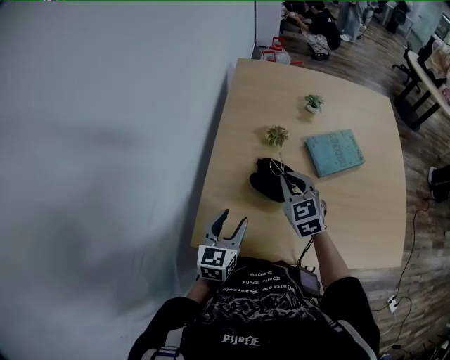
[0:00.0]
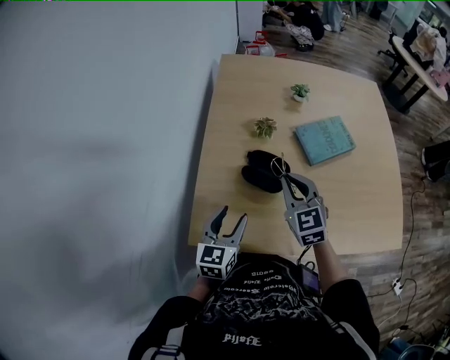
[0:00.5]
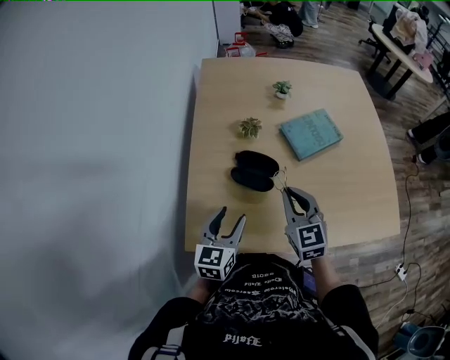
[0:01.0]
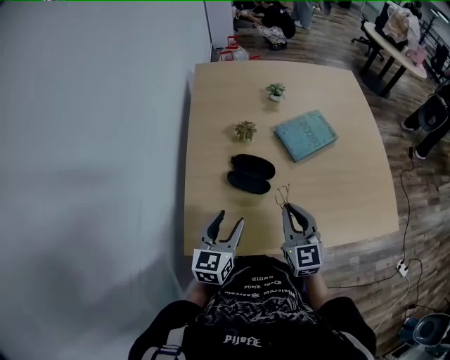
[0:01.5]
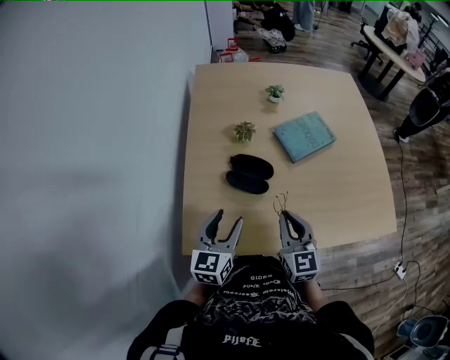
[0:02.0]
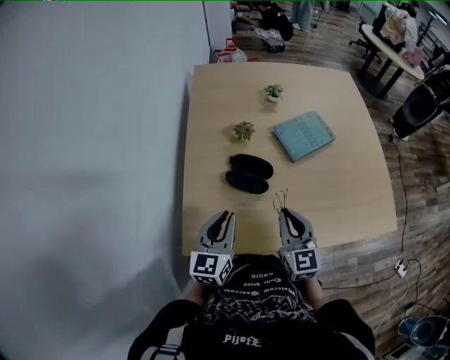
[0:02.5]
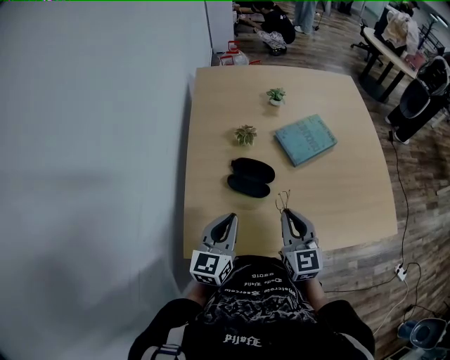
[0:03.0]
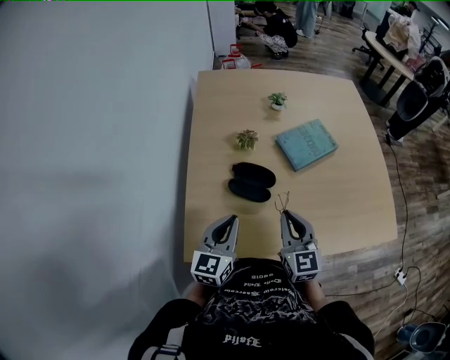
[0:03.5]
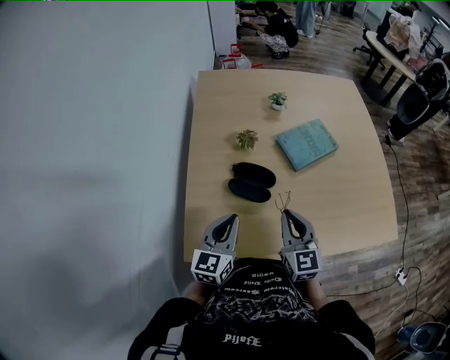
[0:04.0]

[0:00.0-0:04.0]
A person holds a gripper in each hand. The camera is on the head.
0:00.0 to 0:02.0: The left gripper shifts by about 5 cm. The right gripper shifts about 15 cm backward and to the right, and changes its angle by about 30 degrees.
0:02.0 to 0:04.0: The left gripper closes its fingers.

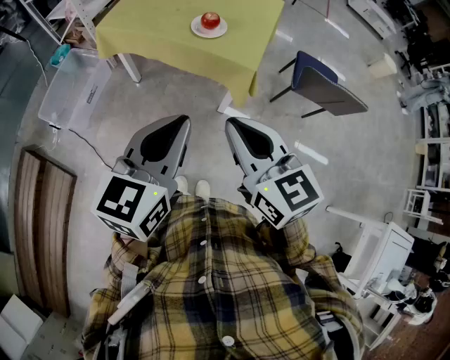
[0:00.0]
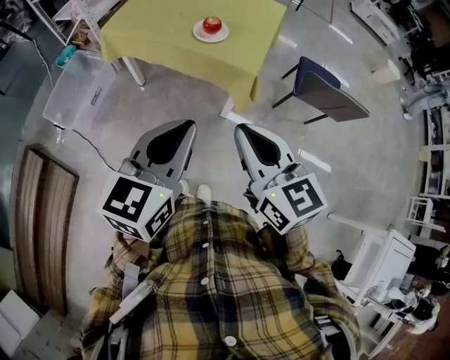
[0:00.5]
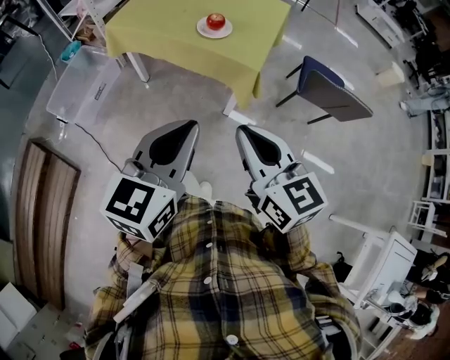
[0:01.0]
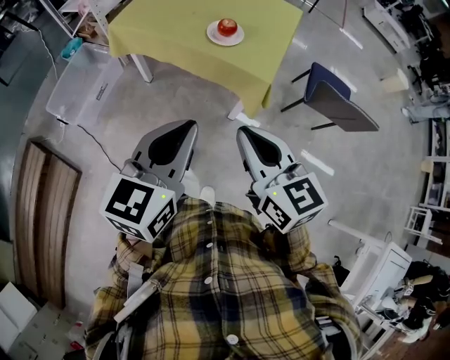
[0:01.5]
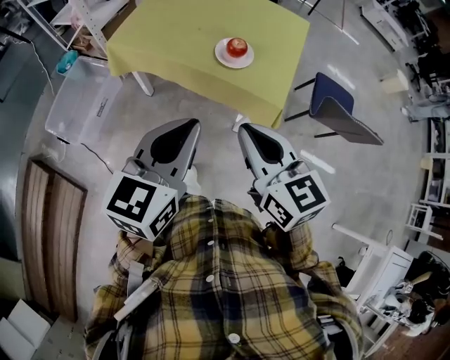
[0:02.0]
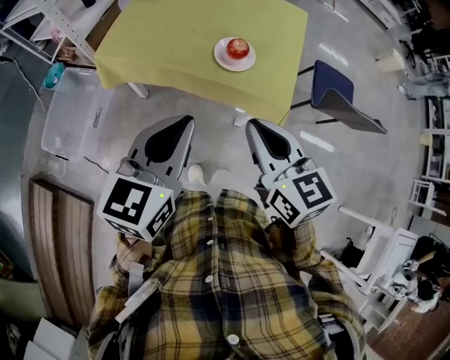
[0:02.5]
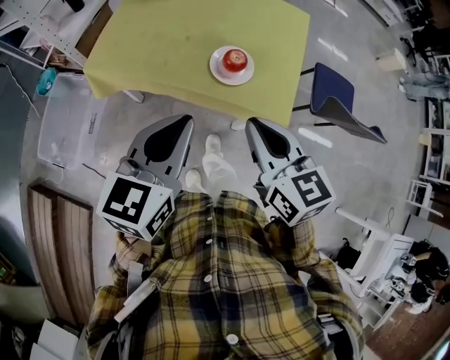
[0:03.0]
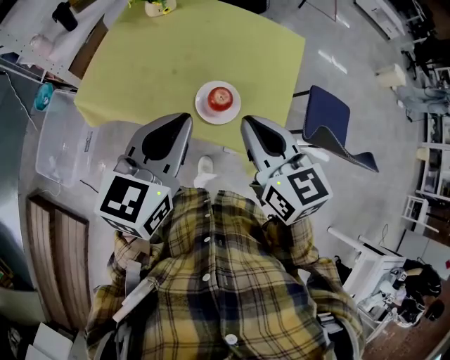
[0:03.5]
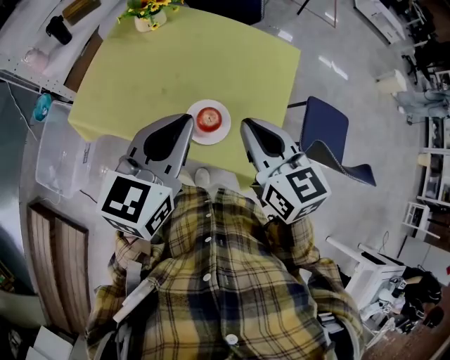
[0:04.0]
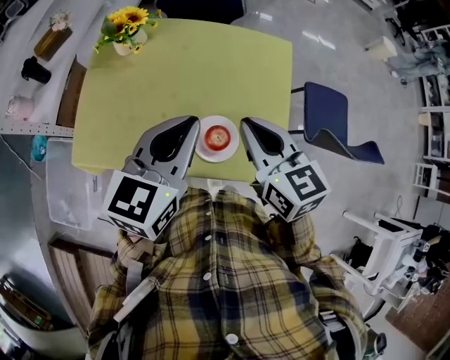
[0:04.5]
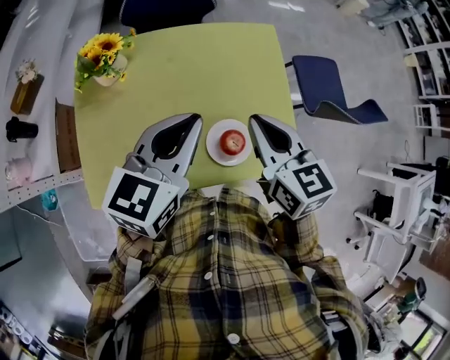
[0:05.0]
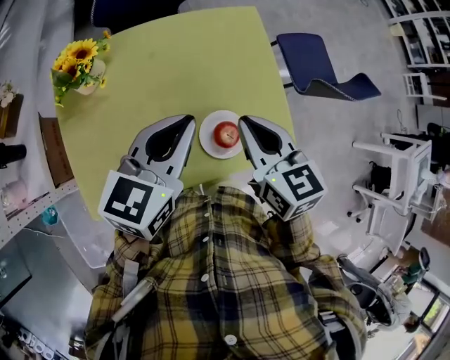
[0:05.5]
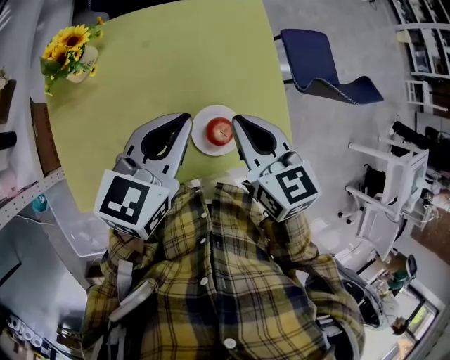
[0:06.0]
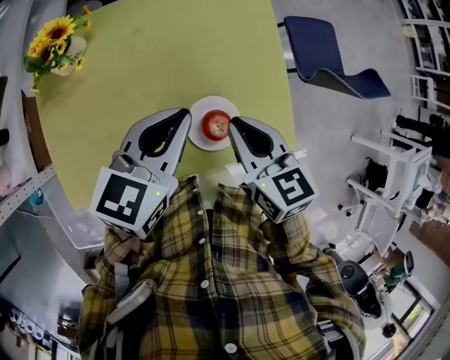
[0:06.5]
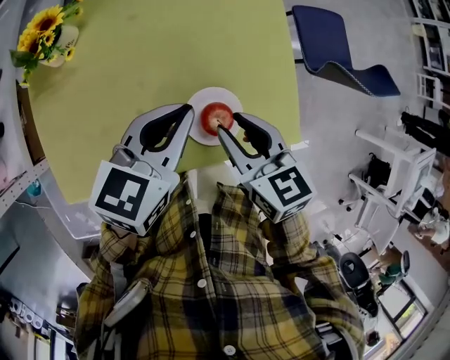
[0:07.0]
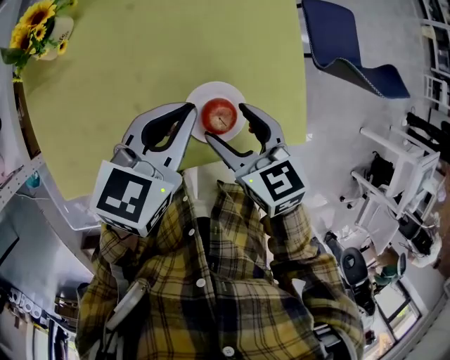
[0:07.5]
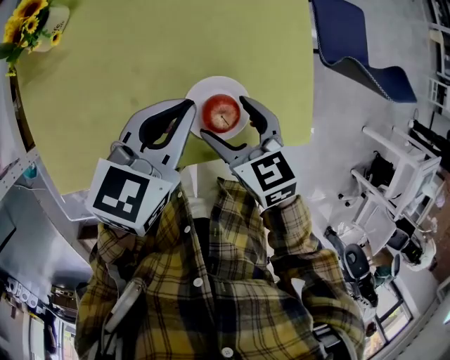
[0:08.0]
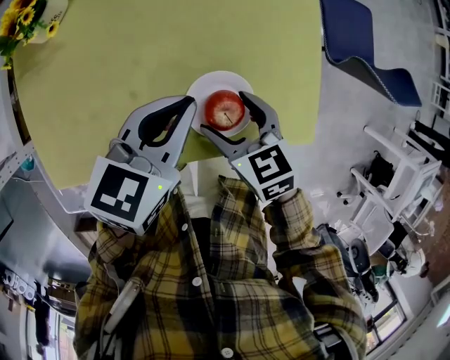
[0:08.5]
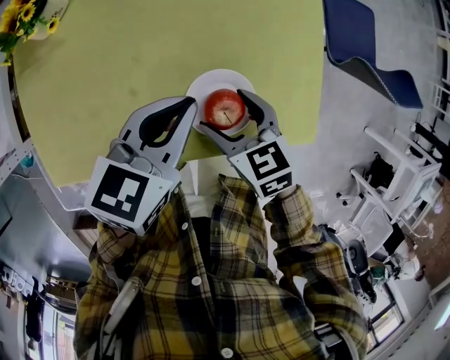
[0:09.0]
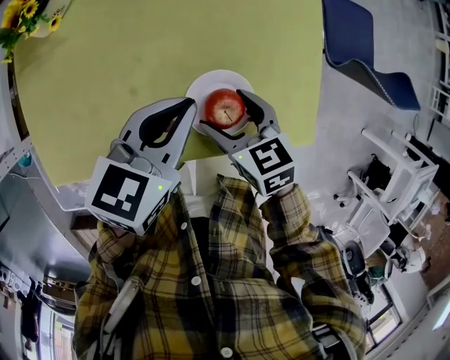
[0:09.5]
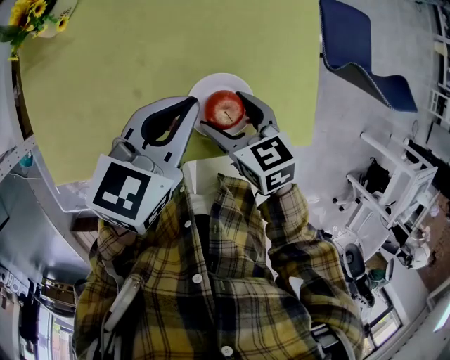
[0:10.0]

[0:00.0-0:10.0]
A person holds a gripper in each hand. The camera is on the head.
0:00.0 to 0:02.0: Both grippers move forward and to the left, approximately 15 cm.
0:02.0 to 0:04.0: The grippers both shift forward by some 35 cm.
0:04.0 to 0:06.0: The left gripper changes place by approximately 15 cm, and swivels some 40 degrees; the right gripper shifts by roughly 15 cm, and swivels about 30 degrees.
0:06.0 to 0:08.0: Both grippers travel together downward, roughly 15 cm. The right gripper changes its angle by some 20 degrees, and opens.
0:08.0 to 0:10.0: The grippers move only a little.

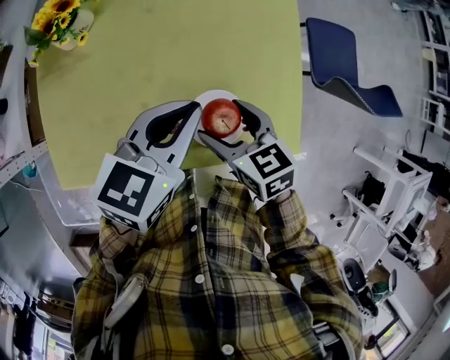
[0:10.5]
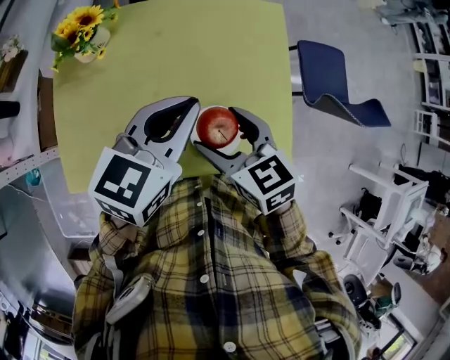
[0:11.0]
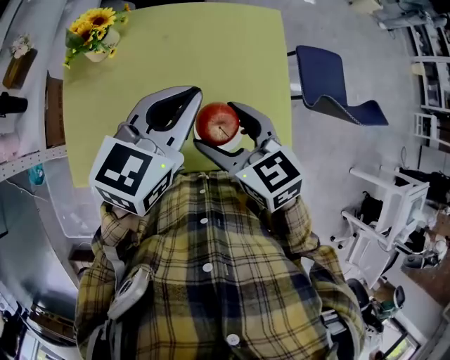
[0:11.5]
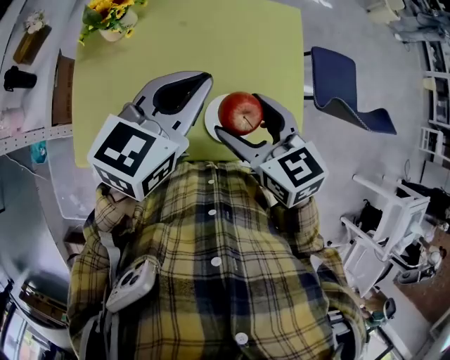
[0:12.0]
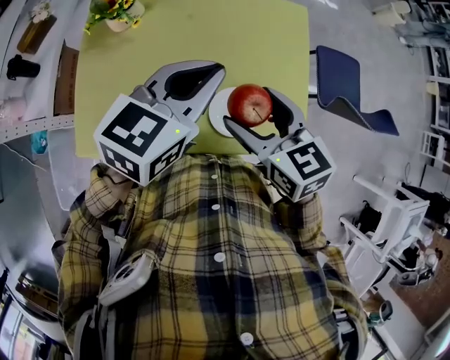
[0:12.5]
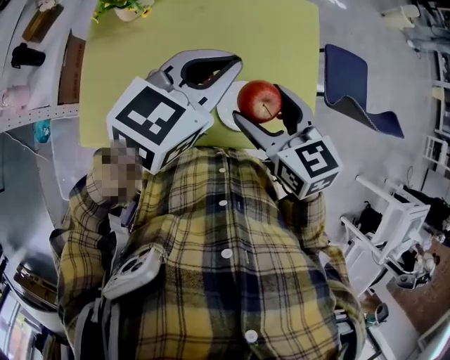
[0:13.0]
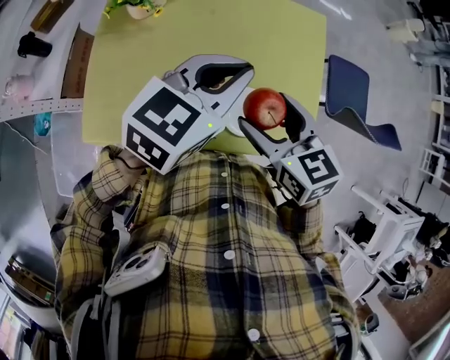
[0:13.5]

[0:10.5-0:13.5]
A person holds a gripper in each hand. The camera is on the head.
0:10.5 to 0:12.0: Both grippers travel together upward, roughly 15 cm.
0:12.0 to 0:13.5: The grippers stay close to where they were, moving slightly.

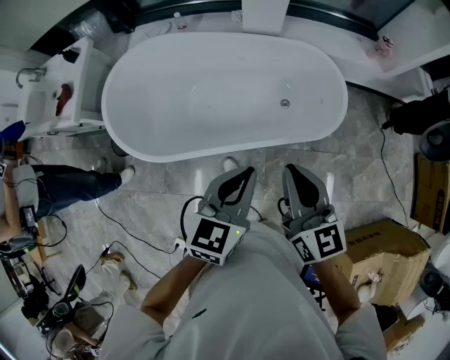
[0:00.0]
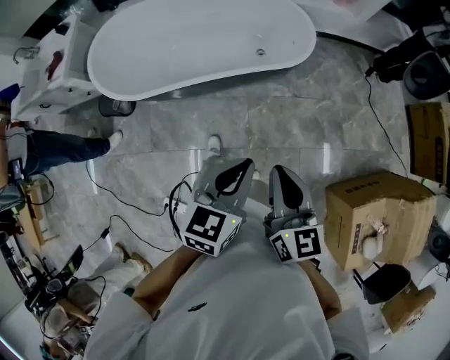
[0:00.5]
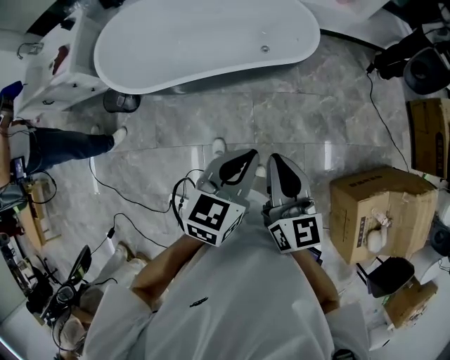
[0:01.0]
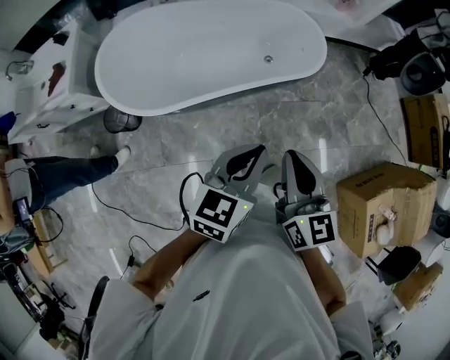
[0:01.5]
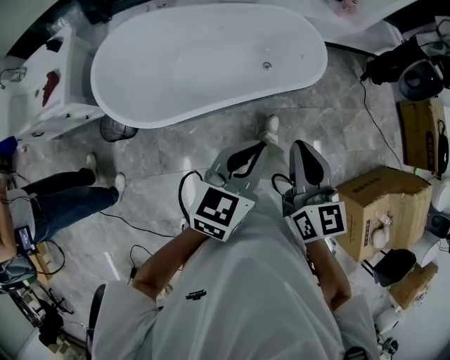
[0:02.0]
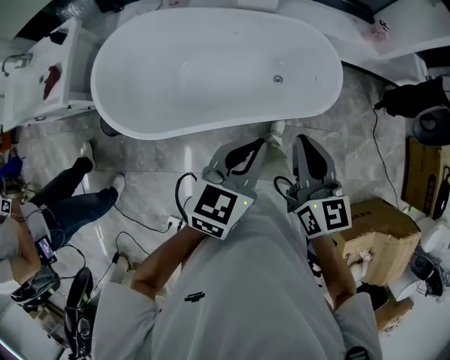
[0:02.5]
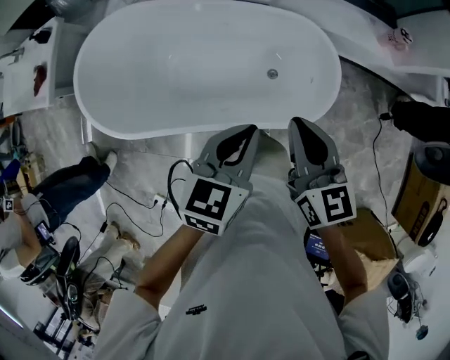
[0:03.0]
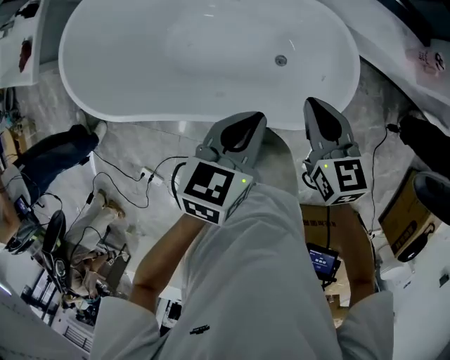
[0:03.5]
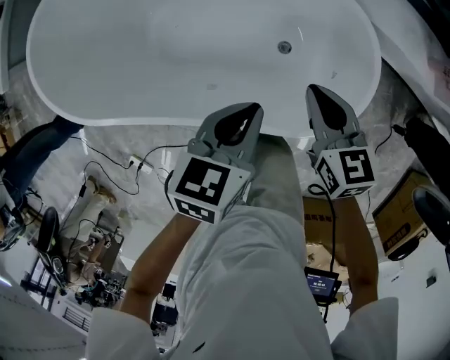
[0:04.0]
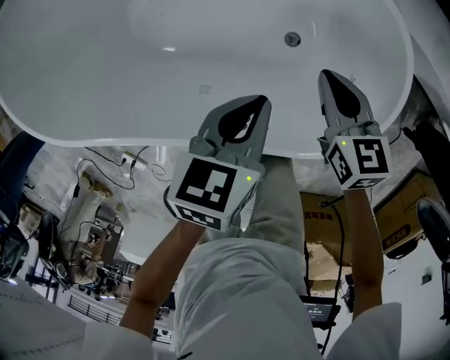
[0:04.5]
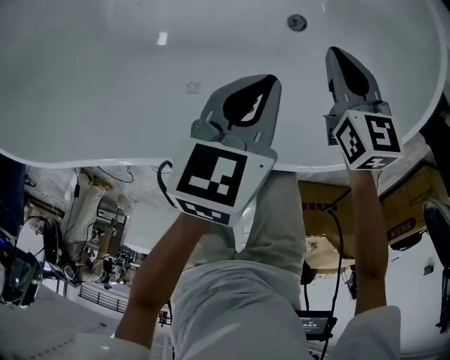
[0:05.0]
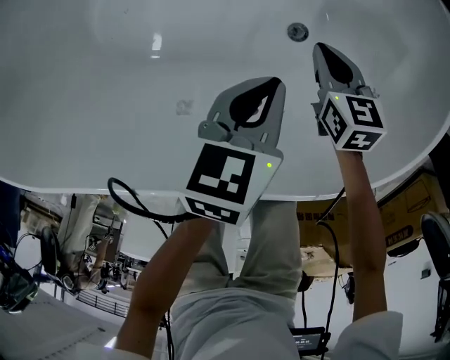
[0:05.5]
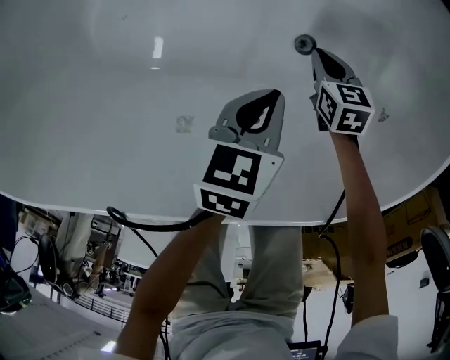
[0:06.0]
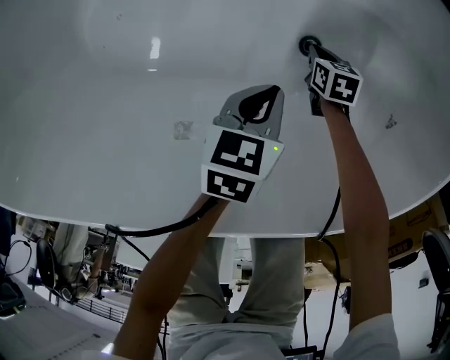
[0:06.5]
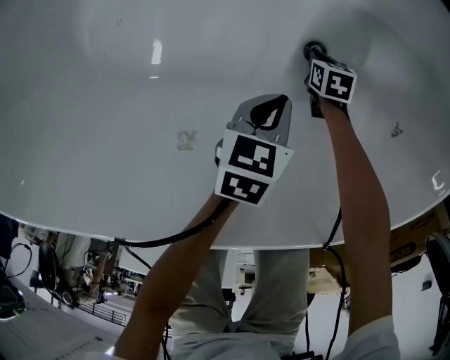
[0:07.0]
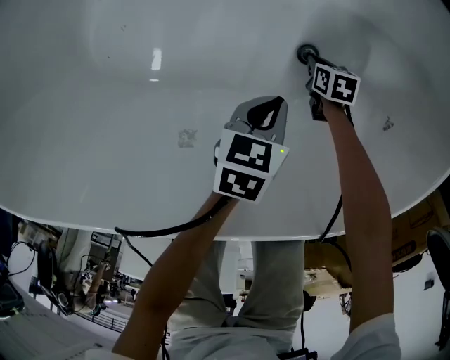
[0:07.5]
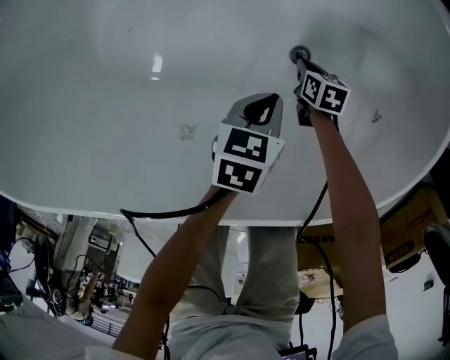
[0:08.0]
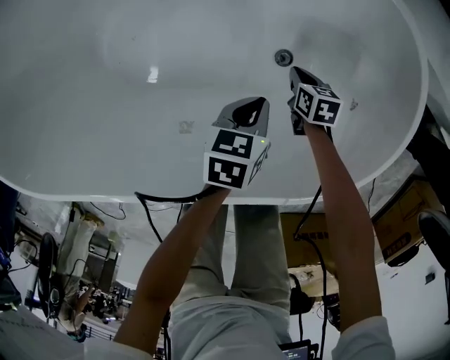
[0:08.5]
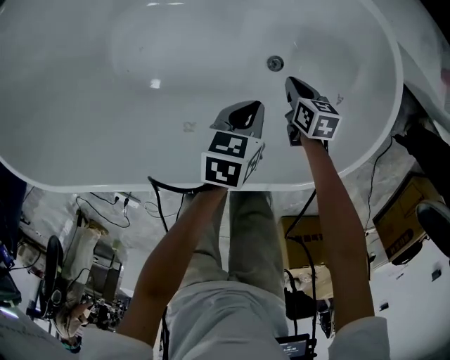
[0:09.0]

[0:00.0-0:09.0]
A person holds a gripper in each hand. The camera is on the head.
0:00.0 to 0:02.0: Both grippers travel together backward, approximately 15 cm.
0:02.0 to 0:04.5: The pair of grippers is taken about 50 cm. The right gripper tips its fingers downward by some 30 degrees, while the left gripper swivels roughly 50 degrees.
0:04.5 to 0:07.0: The two grippers go approximately 40 cm downward. The right gripper tips its fingers downward by some 30 degrees.
0:07.0 to 0:09.0: The left gripper travels upward by roughly 20 cm. Meanwhile the right gripper moves upward, some 25 cm, and turns by some 20 degrees.
